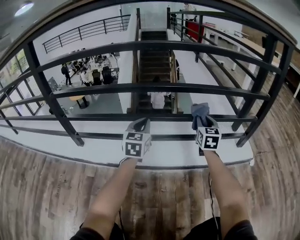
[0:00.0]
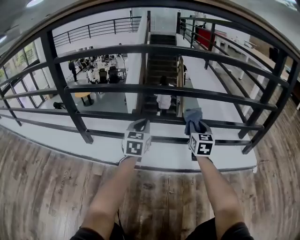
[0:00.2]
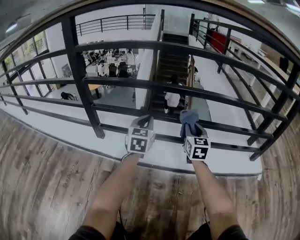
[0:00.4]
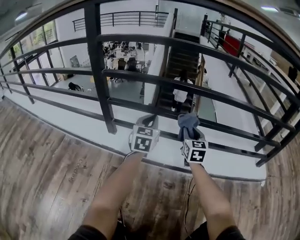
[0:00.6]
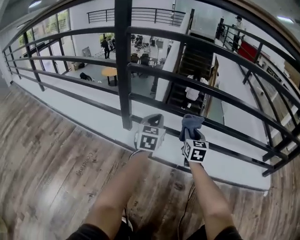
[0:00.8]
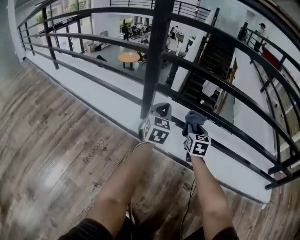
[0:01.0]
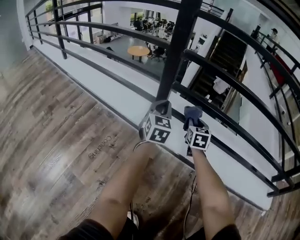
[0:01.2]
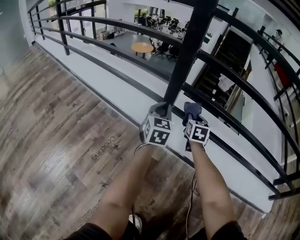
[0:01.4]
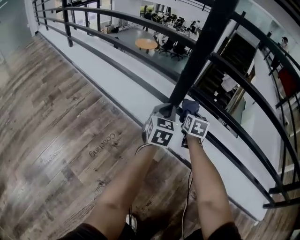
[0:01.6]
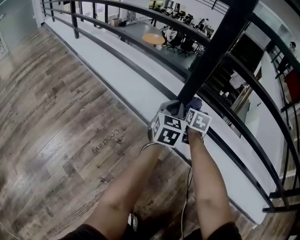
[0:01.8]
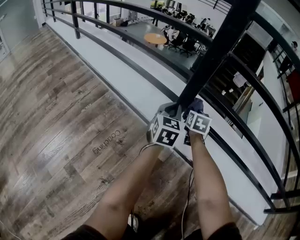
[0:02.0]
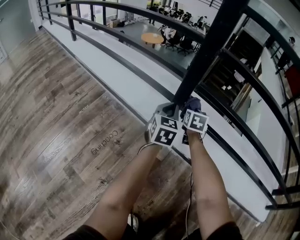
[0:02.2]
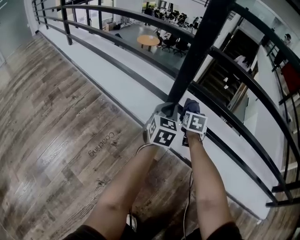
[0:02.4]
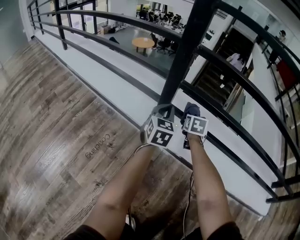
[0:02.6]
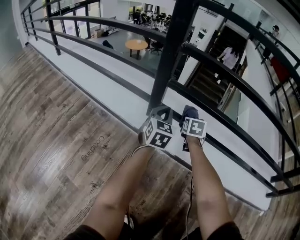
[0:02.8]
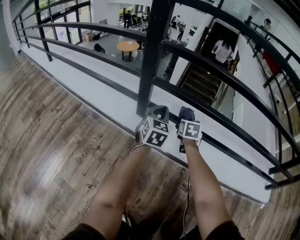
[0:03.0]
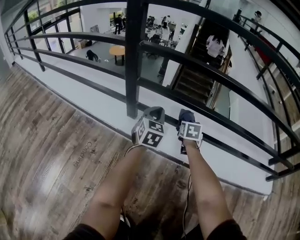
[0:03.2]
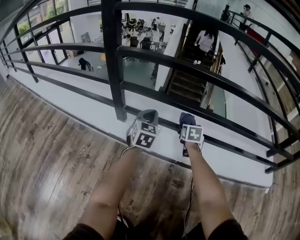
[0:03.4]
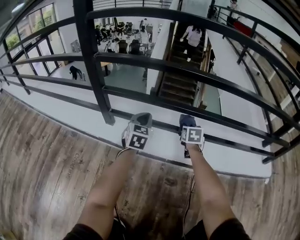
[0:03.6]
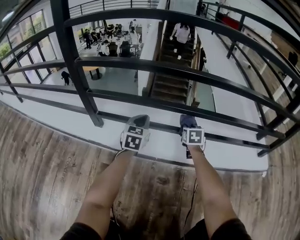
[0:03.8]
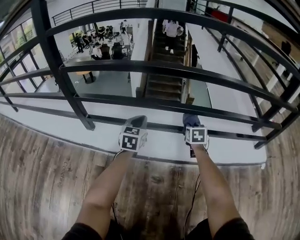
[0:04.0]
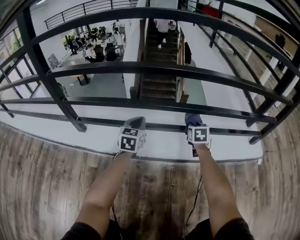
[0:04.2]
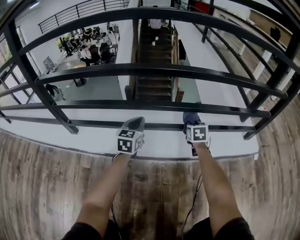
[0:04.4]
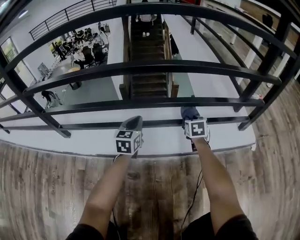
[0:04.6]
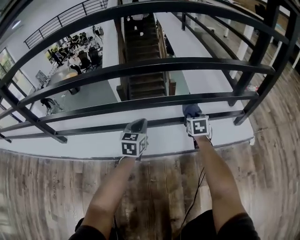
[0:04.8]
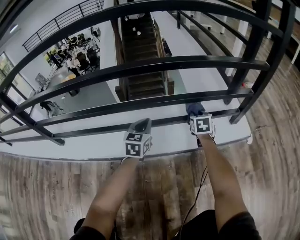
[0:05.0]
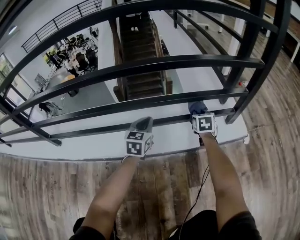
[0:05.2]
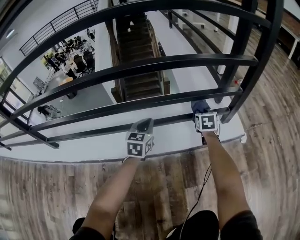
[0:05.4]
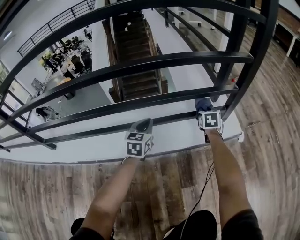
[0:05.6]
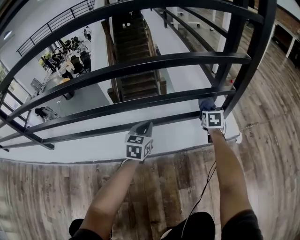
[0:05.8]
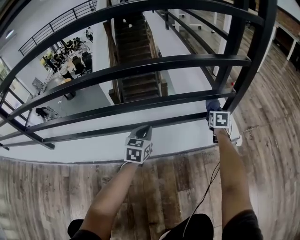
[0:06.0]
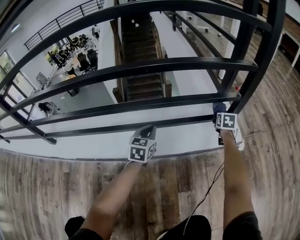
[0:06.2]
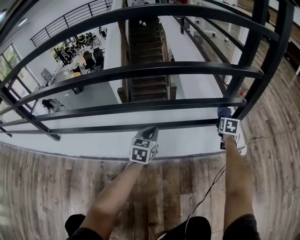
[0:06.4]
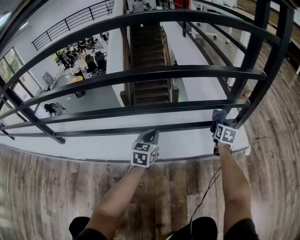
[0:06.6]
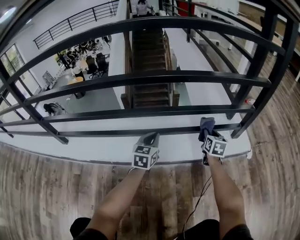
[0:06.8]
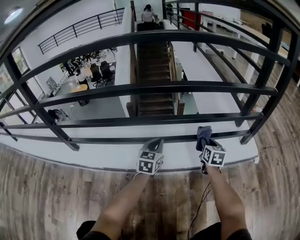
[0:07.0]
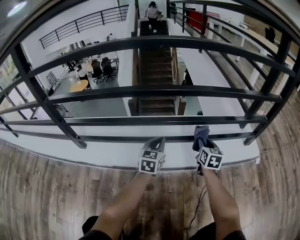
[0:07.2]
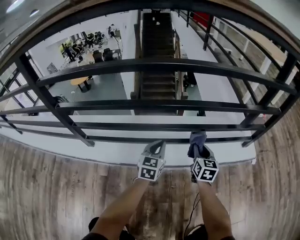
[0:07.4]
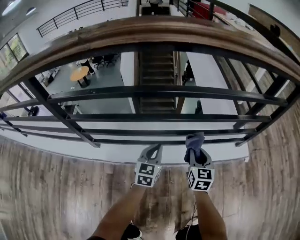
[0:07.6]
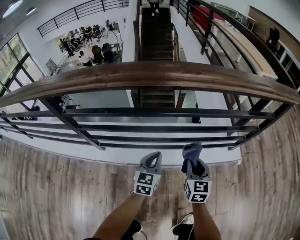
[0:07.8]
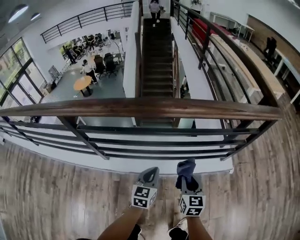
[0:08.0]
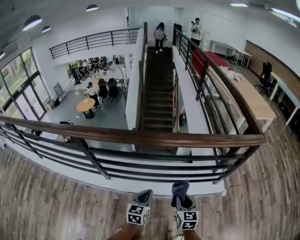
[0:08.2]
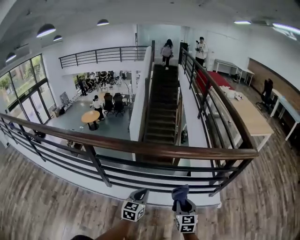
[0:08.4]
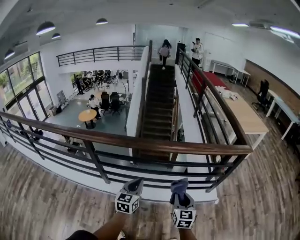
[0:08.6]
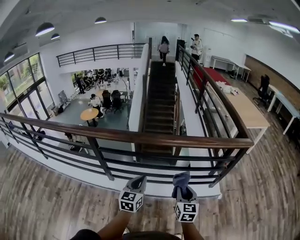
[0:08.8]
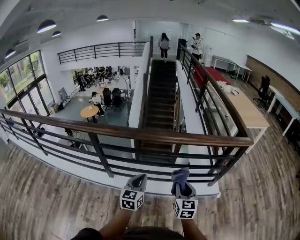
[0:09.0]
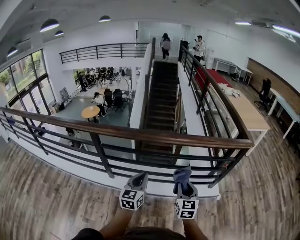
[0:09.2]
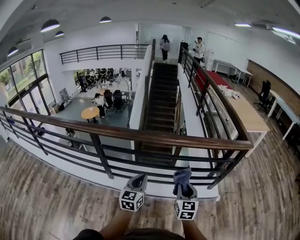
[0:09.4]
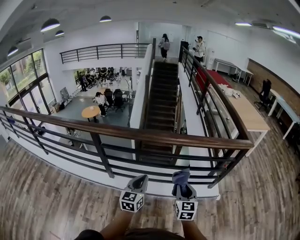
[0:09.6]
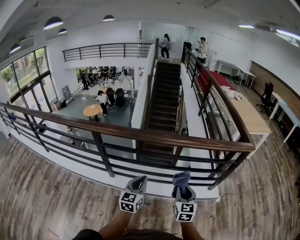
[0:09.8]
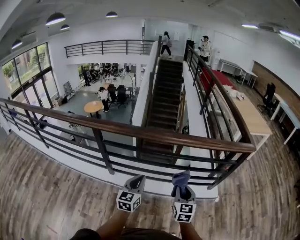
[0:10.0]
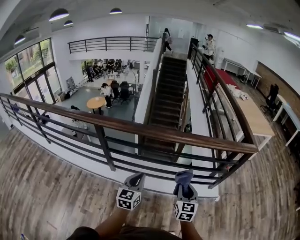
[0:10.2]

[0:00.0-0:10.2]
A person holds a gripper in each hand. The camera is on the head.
0:00.0 to 0:01.4: Both grippers are carried roughly 60 cm. The left gripper changes its angle by some 30 degrees; the right gripper rotates some 30 degrees.
0:01.4 to 0:03.0: Both grippers move to the right, approximately 10 cm.
0:03.0 to 0:04.4: Both grippers move to the right, about 50 cm. The left gripper swivels approximately 20 degrees.
0:04.4 to 0:05.8: The two grippers go roughly 40 cm to the right.
0:05.8 to 0:07.2: The left gripper travels to the left and upward by approximately 30 cm; the right gripper moves to the left, upward and backward, approximately 40 cm, and rotates approximately 20 degrees.
0:07.2 to 0:08.8: The two grippers go some 70 cm upward and backward.
0:08.8 to 0:10.2: The grippers stay close to where they were, moving slightly.

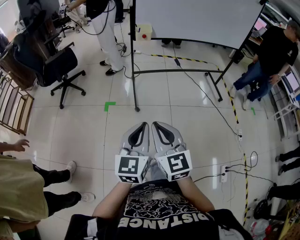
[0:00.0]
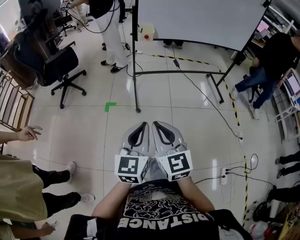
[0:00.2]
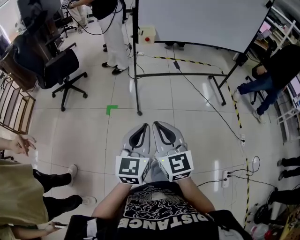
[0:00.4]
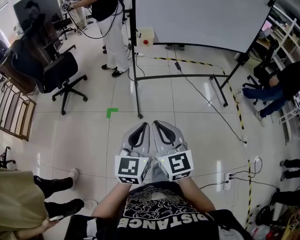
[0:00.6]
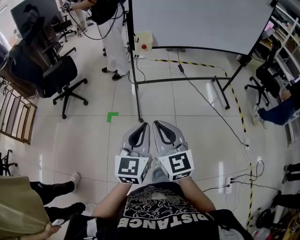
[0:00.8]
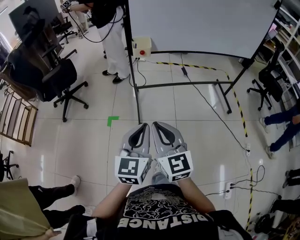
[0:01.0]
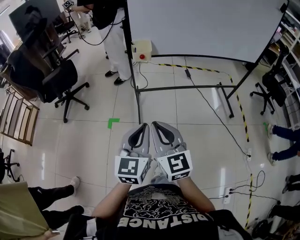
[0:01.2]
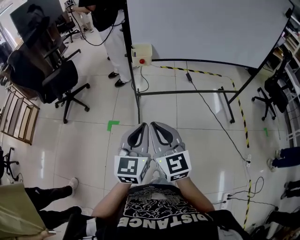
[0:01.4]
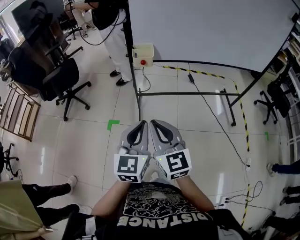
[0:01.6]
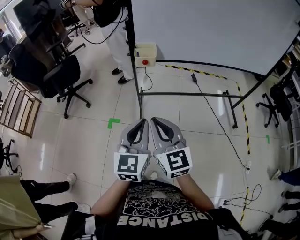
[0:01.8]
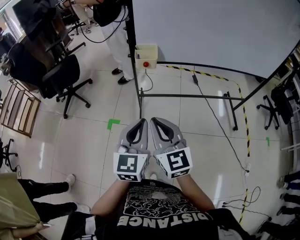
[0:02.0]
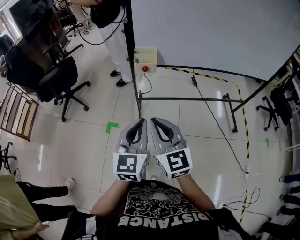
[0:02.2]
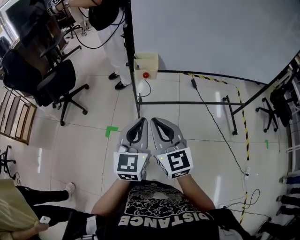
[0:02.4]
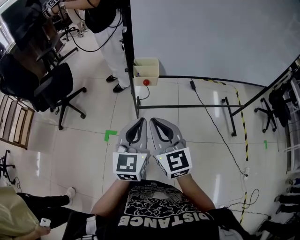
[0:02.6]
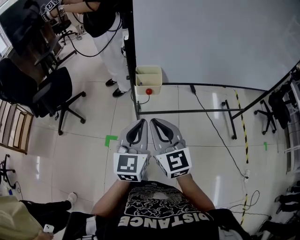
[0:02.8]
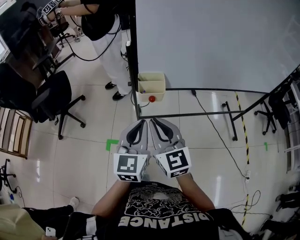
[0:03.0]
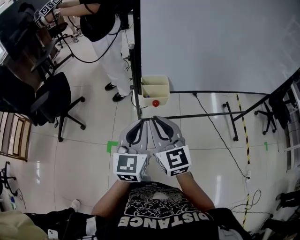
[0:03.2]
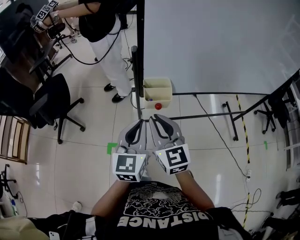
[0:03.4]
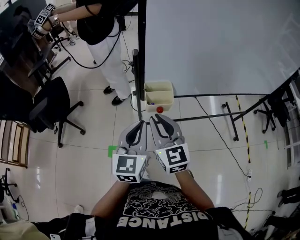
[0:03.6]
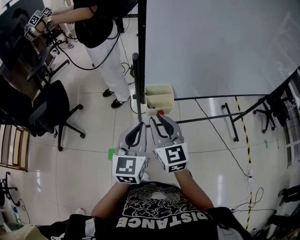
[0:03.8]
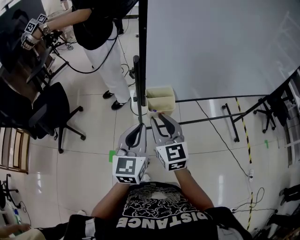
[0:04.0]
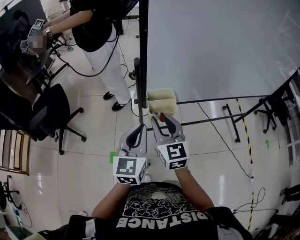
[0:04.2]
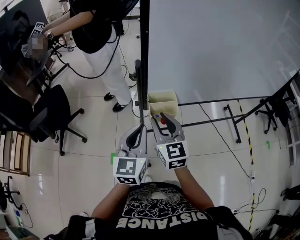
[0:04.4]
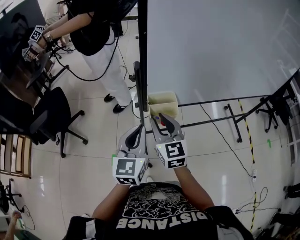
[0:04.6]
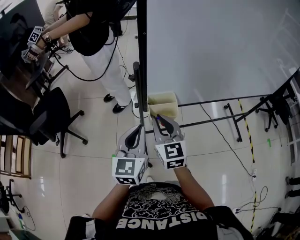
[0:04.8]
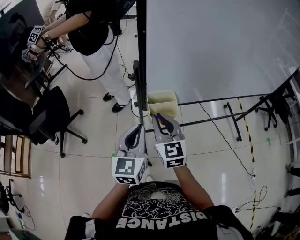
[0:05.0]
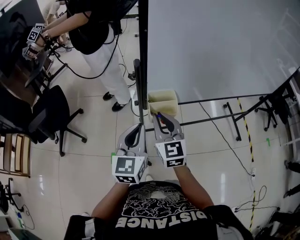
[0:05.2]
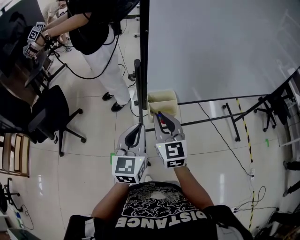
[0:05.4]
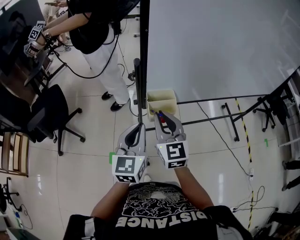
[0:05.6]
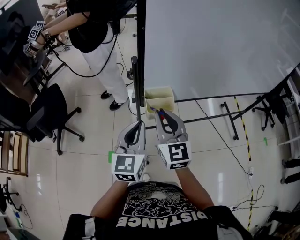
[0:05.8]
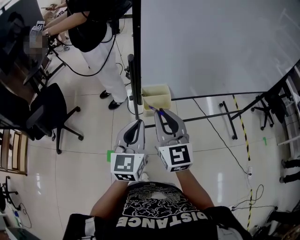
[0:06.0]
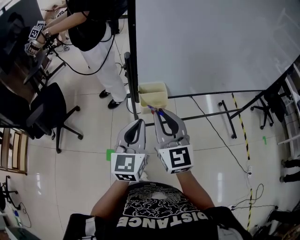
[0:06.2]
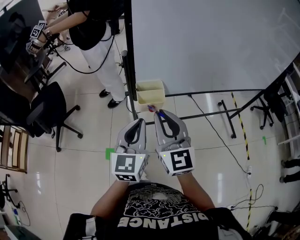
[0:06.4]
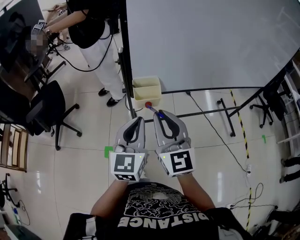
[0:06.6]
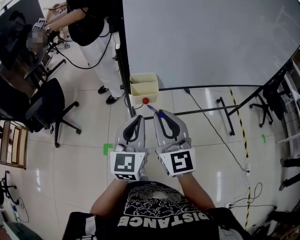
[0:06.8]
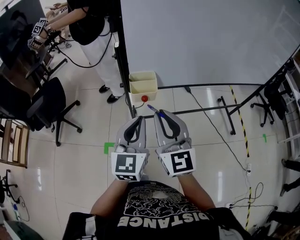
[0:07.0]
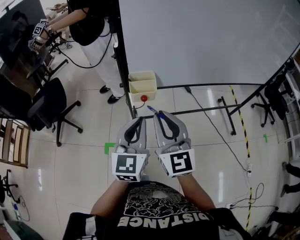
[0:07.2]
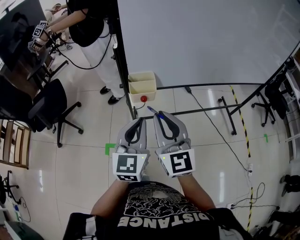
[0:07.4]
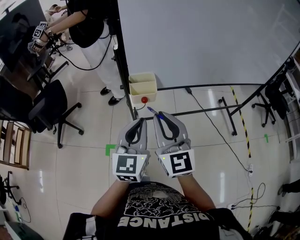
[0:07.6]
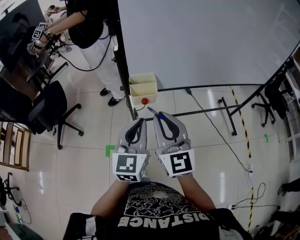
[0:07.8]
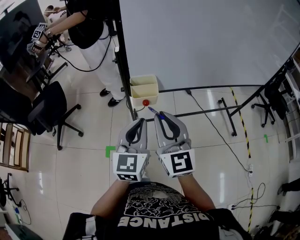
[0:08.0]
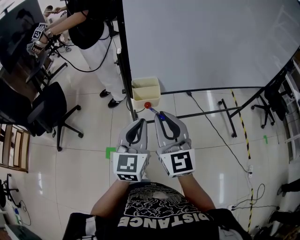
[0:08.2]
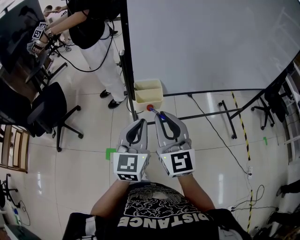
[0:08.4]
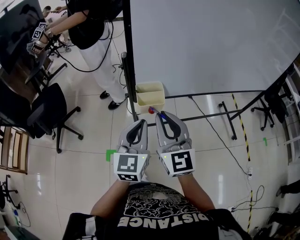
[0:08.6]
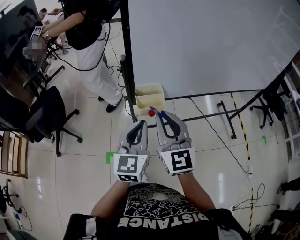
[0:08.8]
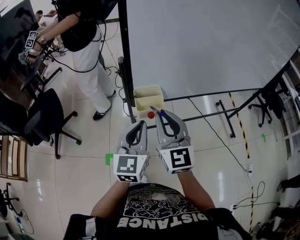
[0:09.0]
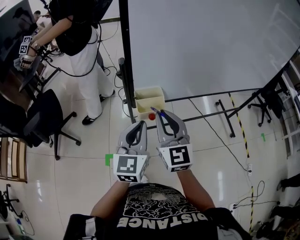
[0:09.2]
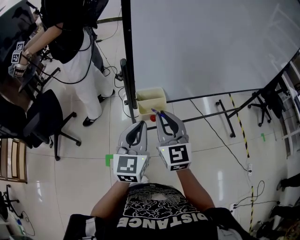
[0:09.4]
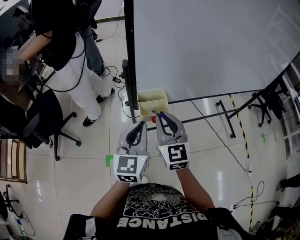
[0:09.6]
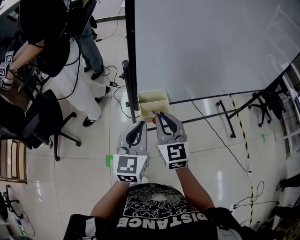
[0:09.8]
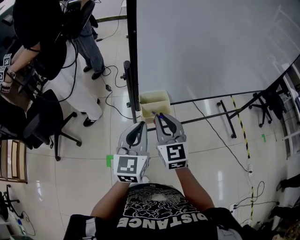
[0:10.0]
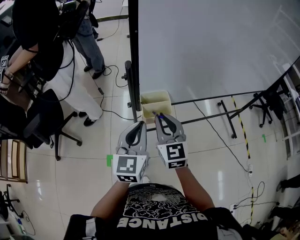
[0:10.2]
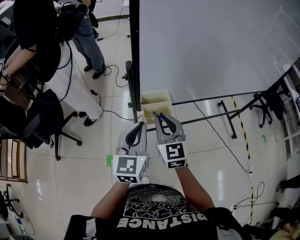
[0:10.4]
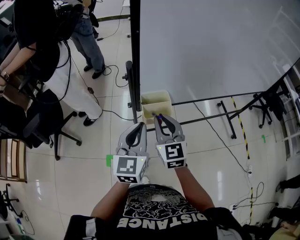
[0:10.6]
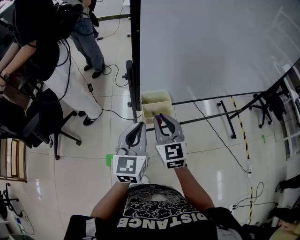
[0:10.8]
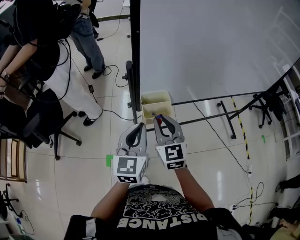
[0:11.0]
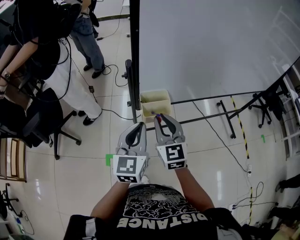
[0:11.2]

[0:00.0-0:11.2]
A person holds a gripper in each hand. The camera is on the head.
0:00.0 to 0:01.6: The two grippers go some 30 cm forward.
0:01.6 to 0:03.2: The grippers both shift forward by some 30 cm.
0:03.2 to 0:04.8: Both grippers move forward, about 10 cm.
0:04.8 to 0:06.4: The right gripper heads backward and upward, covering approximately 15 cm. Meanwhile the left gripper heads backward, covering approximately 5 cm.
0:08.0 to 0:09.6: The left gripper moves forward, roughly 10 cm; the right gripper is displaced forward and downward by some 10 cm.
0:09.6 to 0:11.2: The grippers move only a little.

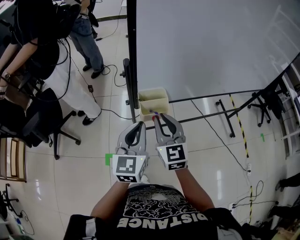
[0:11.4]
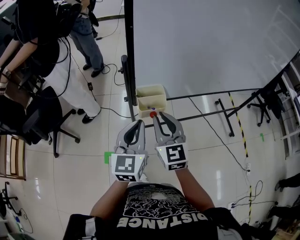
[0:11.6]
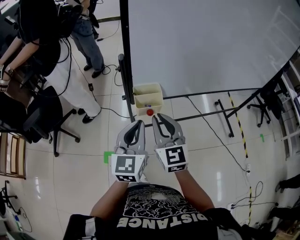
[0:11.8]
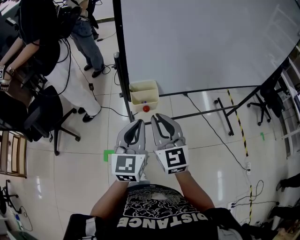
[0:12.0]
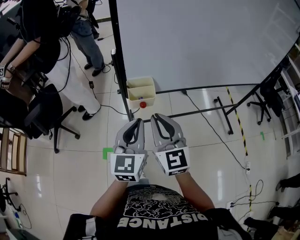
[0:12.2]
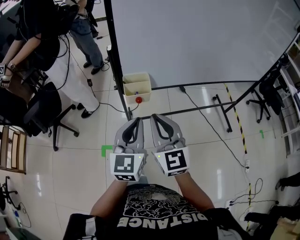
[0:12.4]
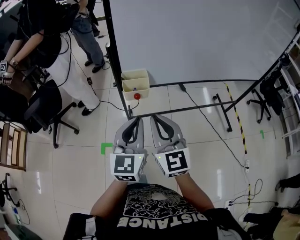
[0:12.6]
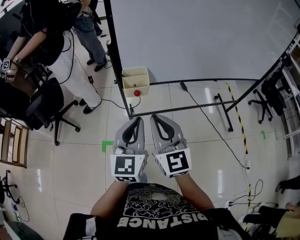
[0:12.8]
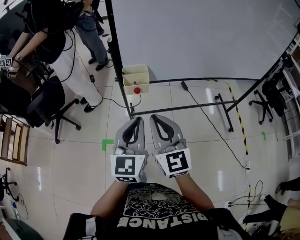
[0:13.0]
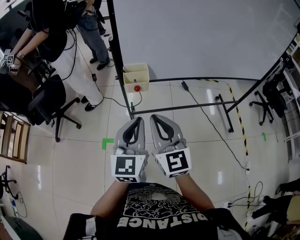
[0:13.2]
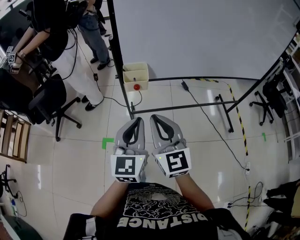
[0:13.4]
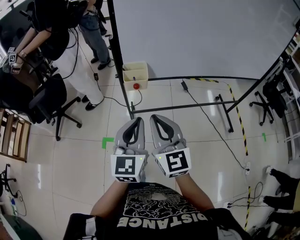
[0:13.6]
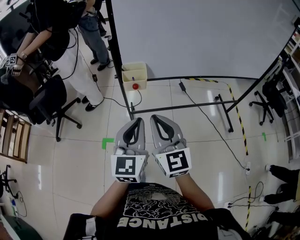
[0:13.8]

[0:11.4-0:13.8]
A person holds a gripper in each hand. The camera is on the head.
0:11.4 to 0:12.6: The left gripper goes about 15 cm backward and to the right. The right gripper travels backward, to the right and upward by some 15 cm.
0:12.6 to 0:13.8: Both grippers move backward, about 5 cm.
